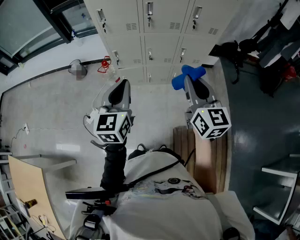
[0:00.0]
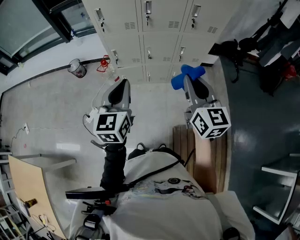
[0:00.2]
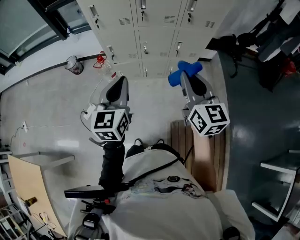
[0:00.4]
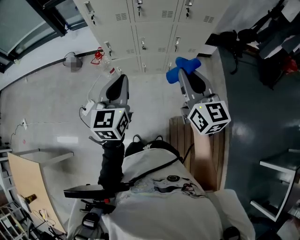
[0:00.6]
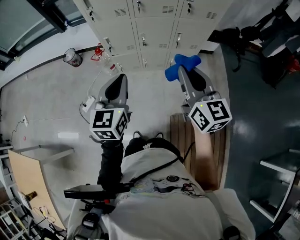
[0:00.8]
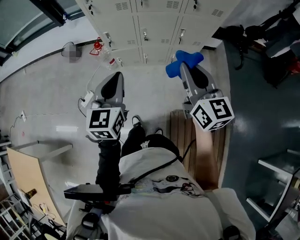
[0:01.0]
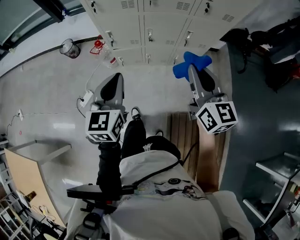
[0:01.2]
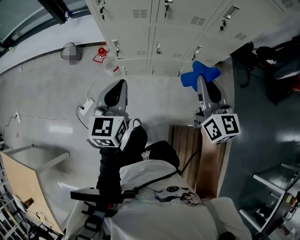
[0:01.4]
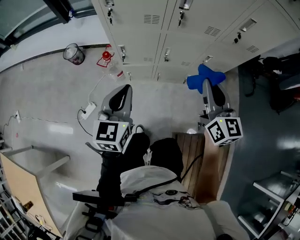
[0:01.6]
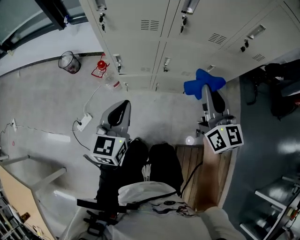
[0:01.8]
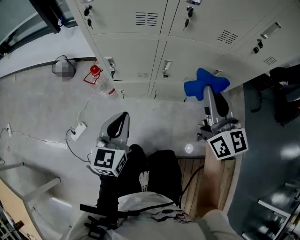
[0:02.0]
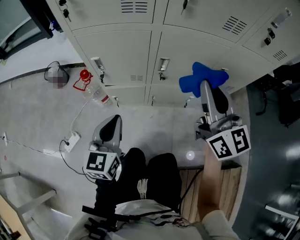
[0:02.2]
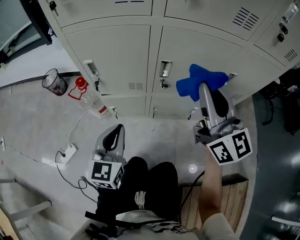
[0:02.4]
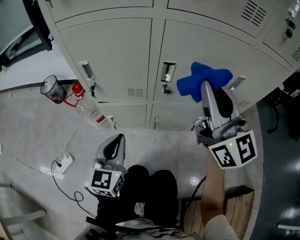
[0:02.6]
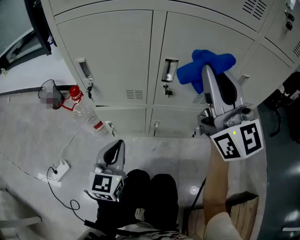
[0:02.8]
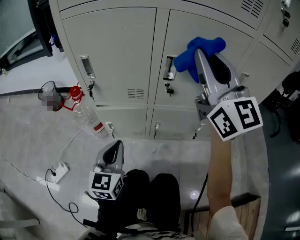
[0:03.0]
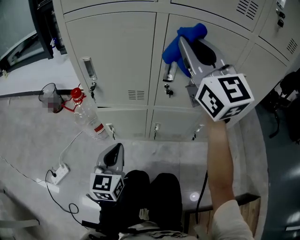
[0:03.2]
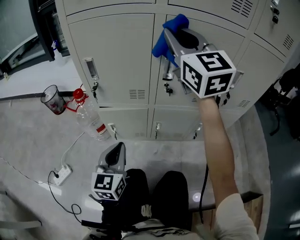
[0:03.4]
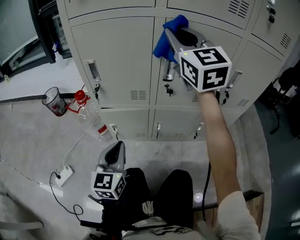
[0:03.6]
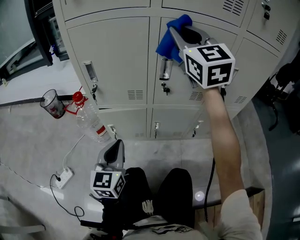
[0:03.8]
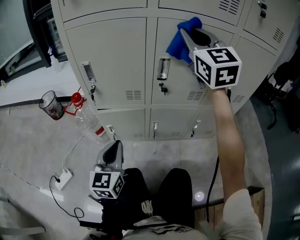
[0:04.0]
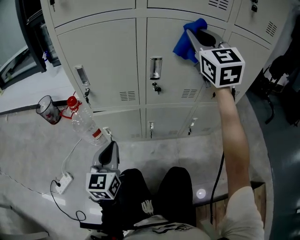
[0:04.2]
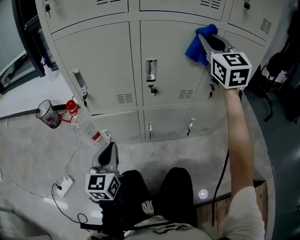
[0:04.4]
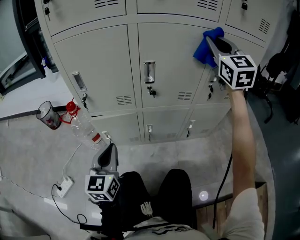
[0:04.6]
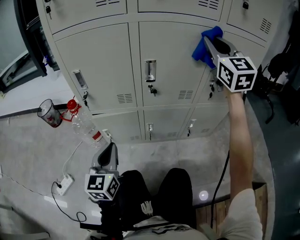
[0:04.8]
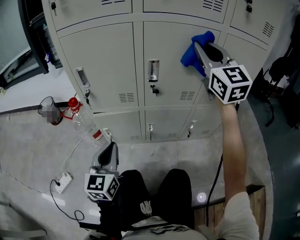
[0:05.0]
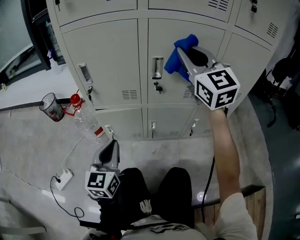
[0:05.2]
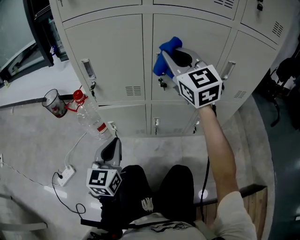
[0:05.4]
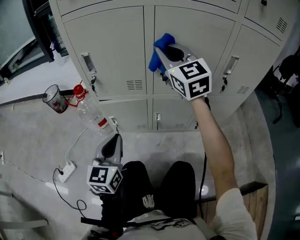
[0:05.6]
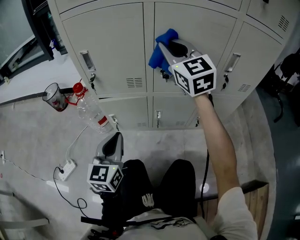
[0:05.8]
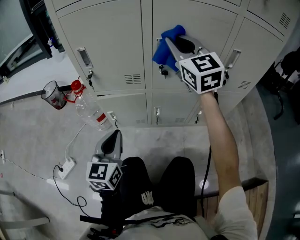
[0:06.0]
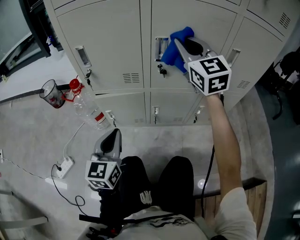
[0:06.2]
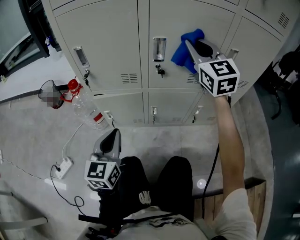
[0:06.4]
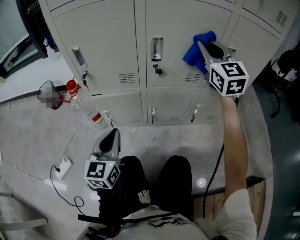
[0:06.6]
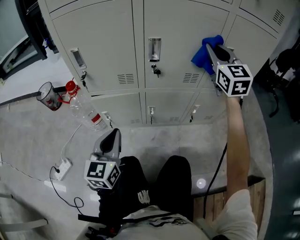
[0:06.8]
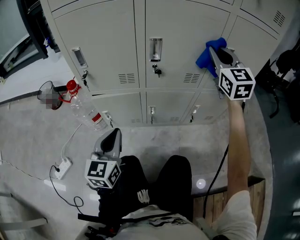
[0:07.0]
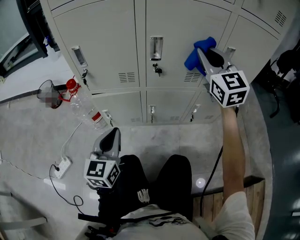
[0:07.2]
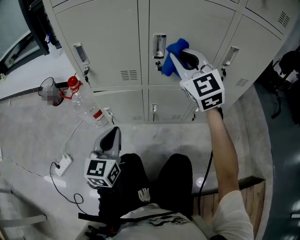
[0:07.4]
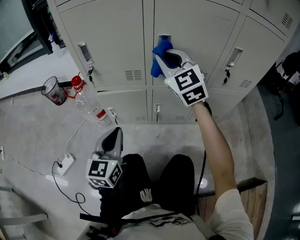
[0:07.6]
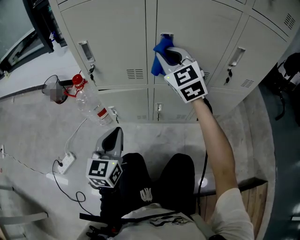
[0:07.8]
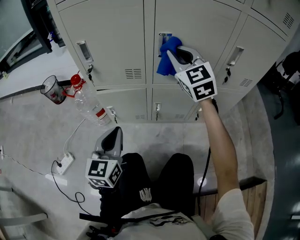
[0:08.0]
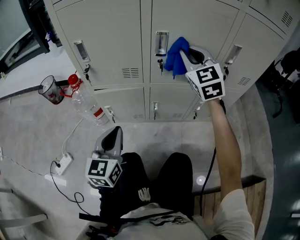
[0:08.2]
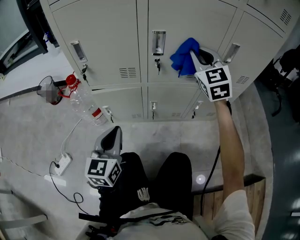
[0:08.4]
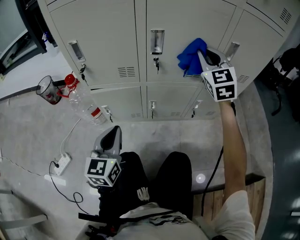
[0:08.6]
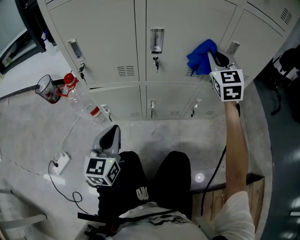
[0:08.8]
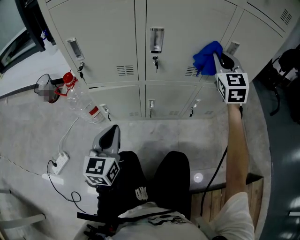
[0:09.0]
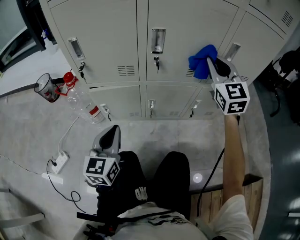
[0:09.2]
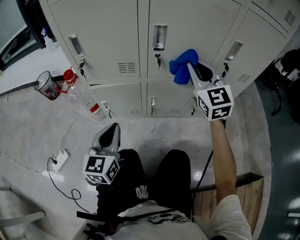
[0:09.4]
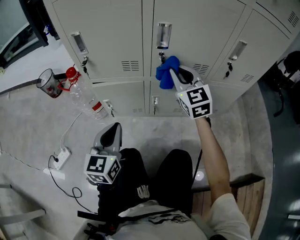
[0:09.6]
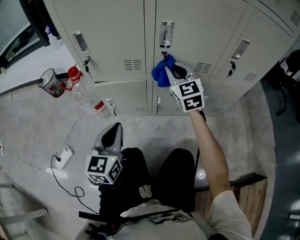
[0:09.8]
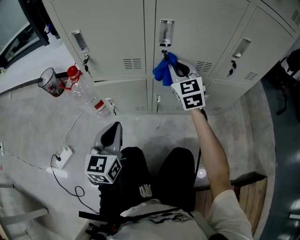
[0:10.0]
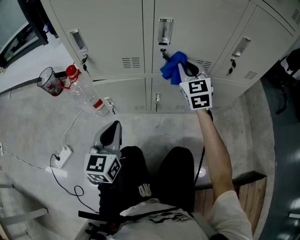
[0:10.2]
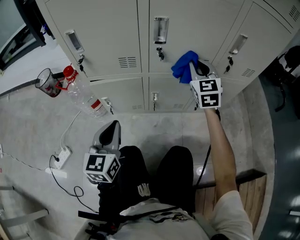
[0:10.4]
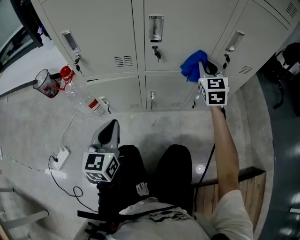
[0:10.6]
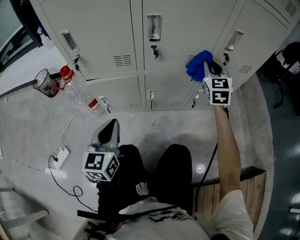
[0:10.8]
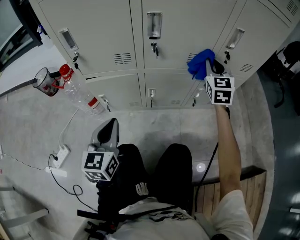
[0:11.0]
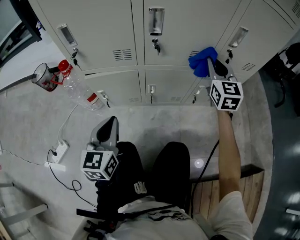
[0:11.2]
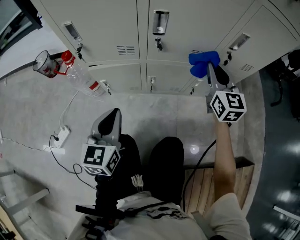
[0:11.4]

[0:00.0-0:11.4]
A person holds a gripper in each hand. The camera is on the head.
0:00.0 to 0:01.4: Both grippers travel together forward and downward, approximately 20 cm.
0:01.4 to 0:02.8: The right gripper heads downward and forward, covering some 35 cm, and turns by some 30 degrees, while the left gripper is displaced downward by about 50 cm.
0:02.8 to 0:04.2: The right gripper moves forward, about 10 cm, and turns by roughly 30 degrees.
0:04.2 to 0:05.6: The right gripper goes some 15 cm to the left and downward.
0:05.6 to 0:07.2: The right gripper moves to the right, approximately 15 cm.
0:07.2 to 0:08.6: The right gripper shifts roughly 5 cm downward, and reaches some 15 cm to the left, then returns.
0:08.6 to 0:10.0: The right gripper goes roughly 15 cm to the left and downward.
0:10.0 to 0:11.4: The right gripper moves to the right and backward, approximately 15 cm. Meanwhile the left gripper ends up some 5 cm from where it was.

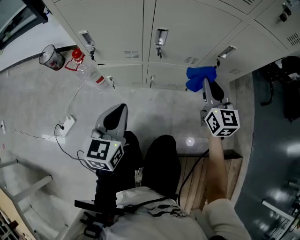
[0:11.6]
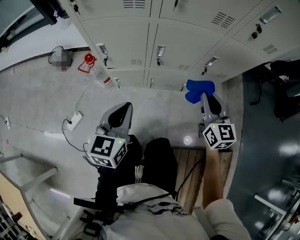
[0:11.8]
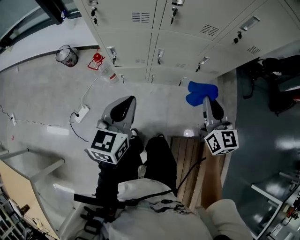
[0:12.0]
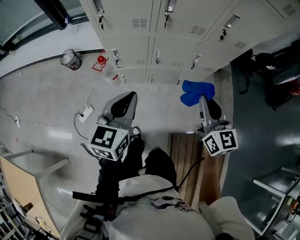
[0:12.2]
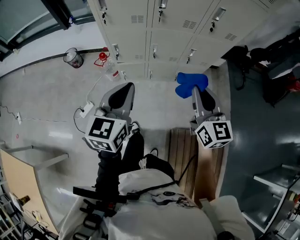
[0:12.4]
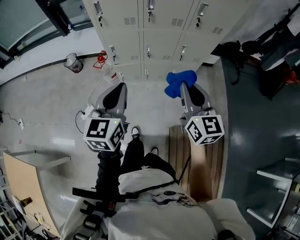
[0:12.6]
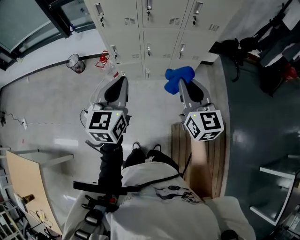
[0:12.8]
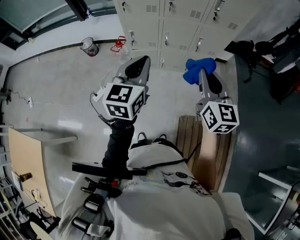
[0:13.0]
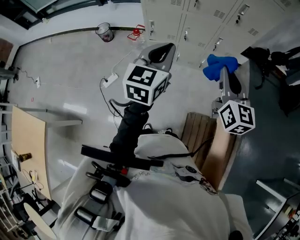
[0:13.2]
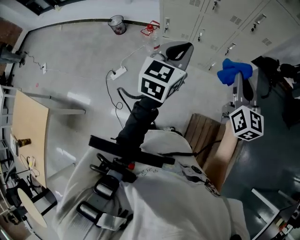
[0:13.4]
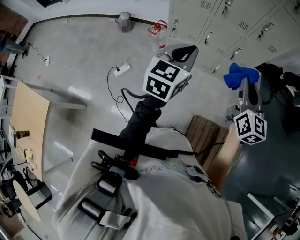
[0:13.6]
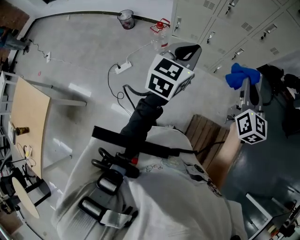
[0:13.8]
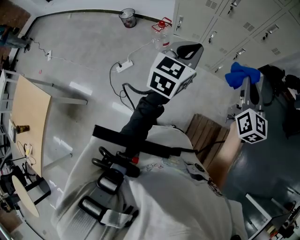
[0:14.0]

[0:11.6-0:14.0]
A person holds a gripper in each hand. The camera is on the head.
0:11.6 to 0:12.8: The grippers both shift upward and backward by some 60 cm.
0:12.8 to 0:14.0: Both grippers move to the left, about 5 cm.

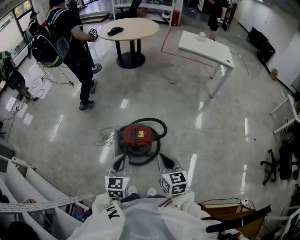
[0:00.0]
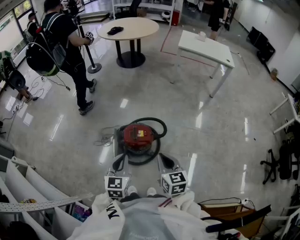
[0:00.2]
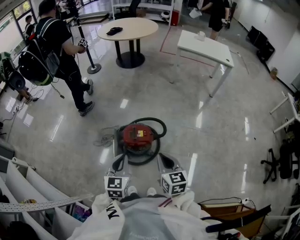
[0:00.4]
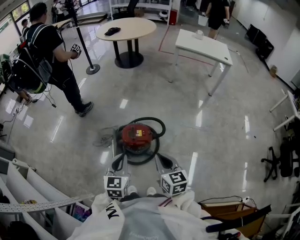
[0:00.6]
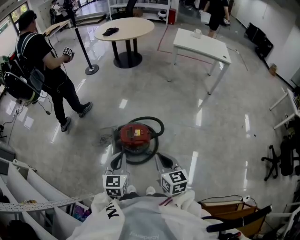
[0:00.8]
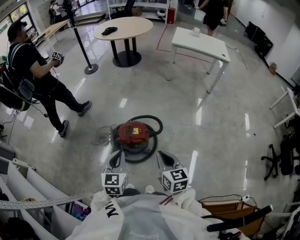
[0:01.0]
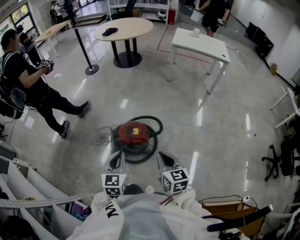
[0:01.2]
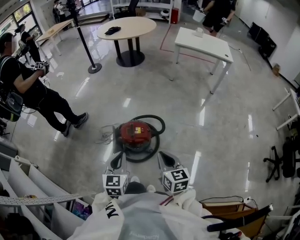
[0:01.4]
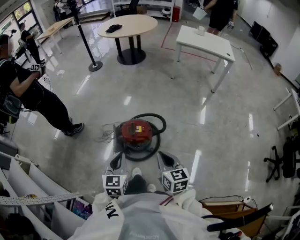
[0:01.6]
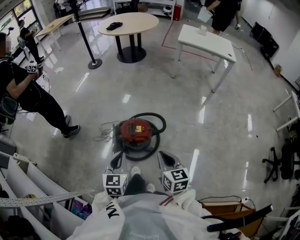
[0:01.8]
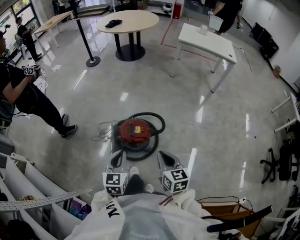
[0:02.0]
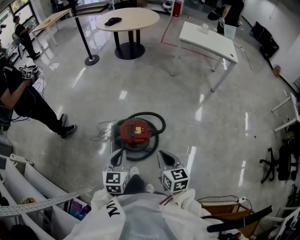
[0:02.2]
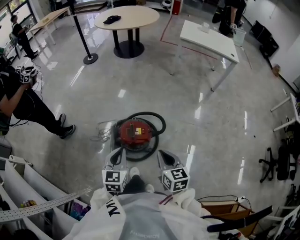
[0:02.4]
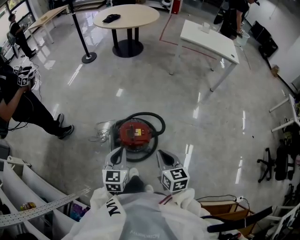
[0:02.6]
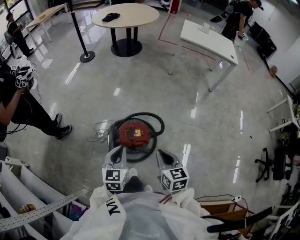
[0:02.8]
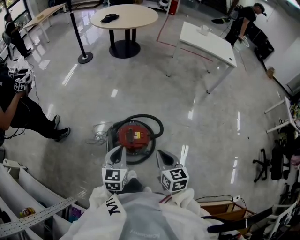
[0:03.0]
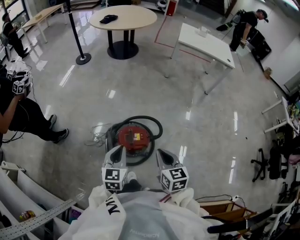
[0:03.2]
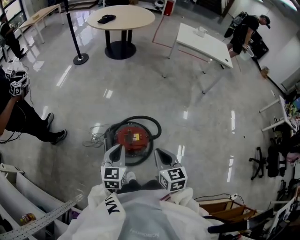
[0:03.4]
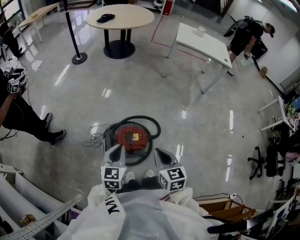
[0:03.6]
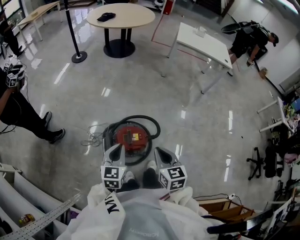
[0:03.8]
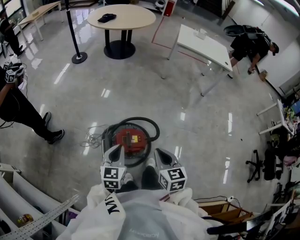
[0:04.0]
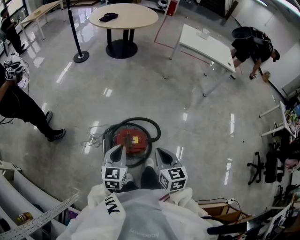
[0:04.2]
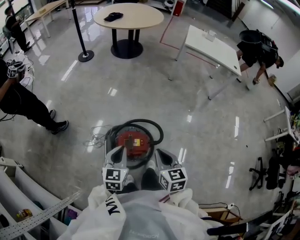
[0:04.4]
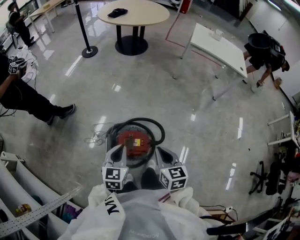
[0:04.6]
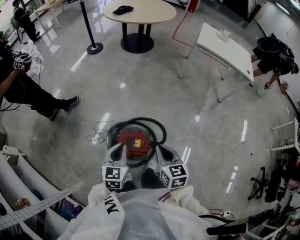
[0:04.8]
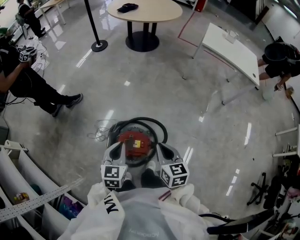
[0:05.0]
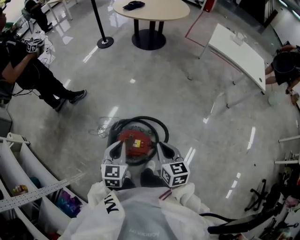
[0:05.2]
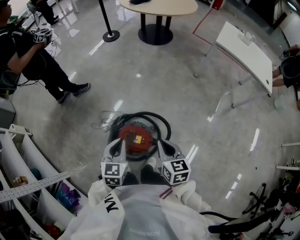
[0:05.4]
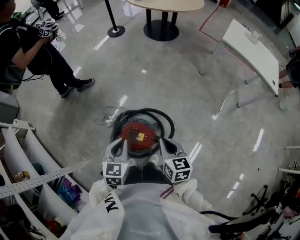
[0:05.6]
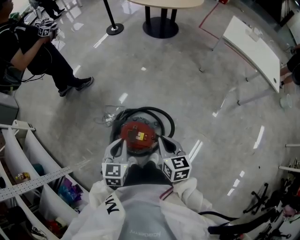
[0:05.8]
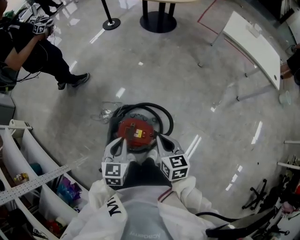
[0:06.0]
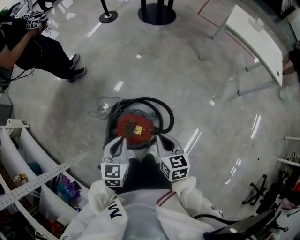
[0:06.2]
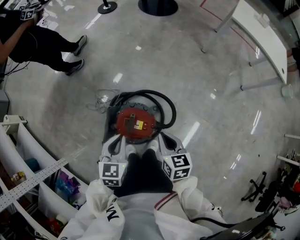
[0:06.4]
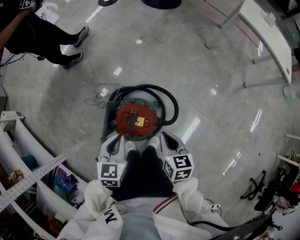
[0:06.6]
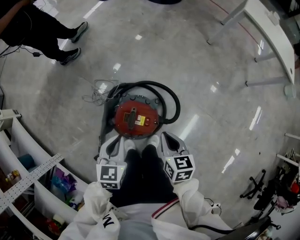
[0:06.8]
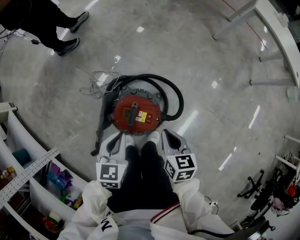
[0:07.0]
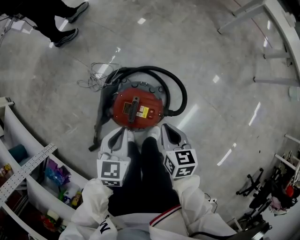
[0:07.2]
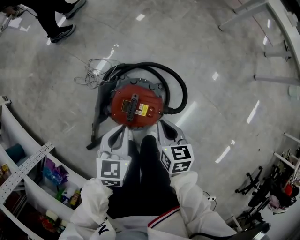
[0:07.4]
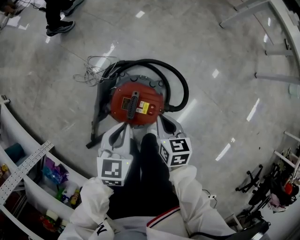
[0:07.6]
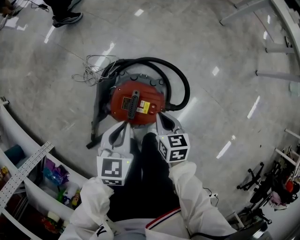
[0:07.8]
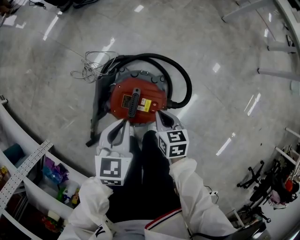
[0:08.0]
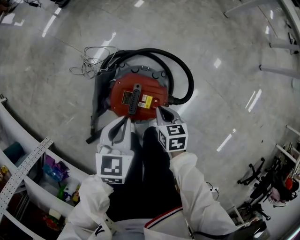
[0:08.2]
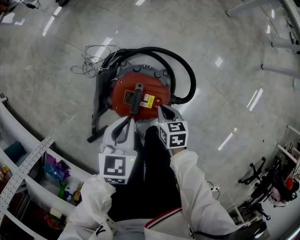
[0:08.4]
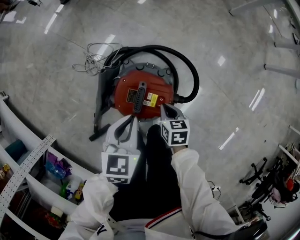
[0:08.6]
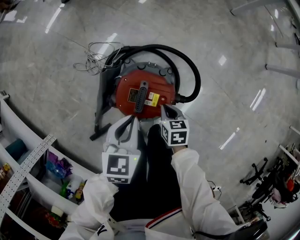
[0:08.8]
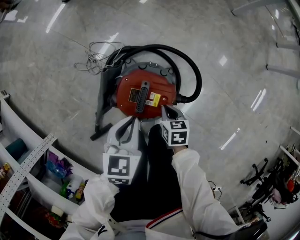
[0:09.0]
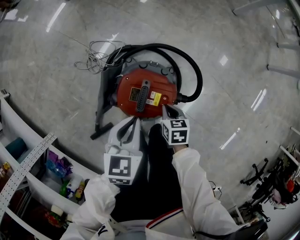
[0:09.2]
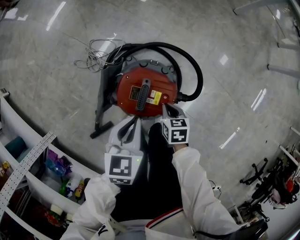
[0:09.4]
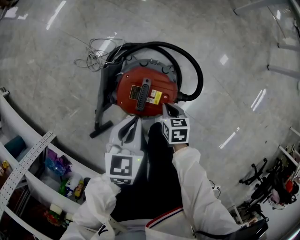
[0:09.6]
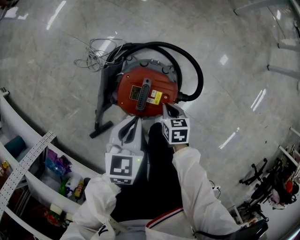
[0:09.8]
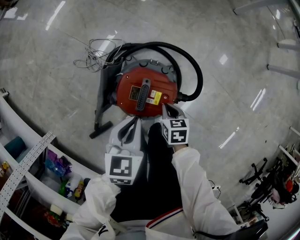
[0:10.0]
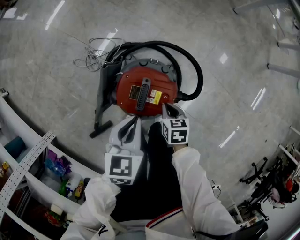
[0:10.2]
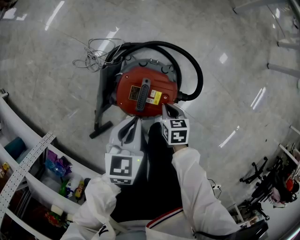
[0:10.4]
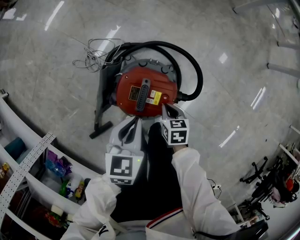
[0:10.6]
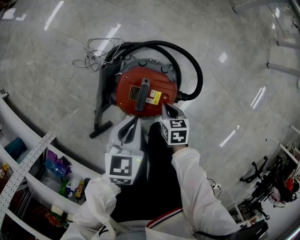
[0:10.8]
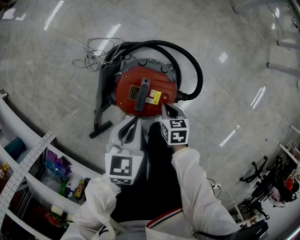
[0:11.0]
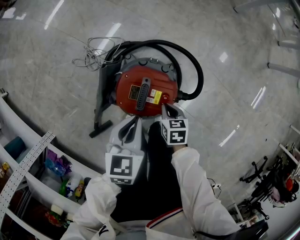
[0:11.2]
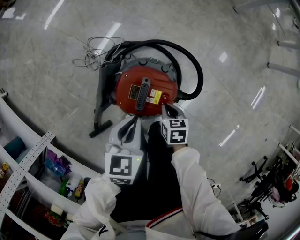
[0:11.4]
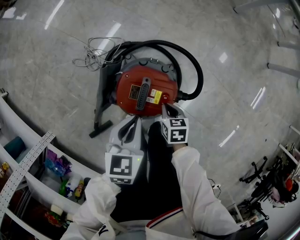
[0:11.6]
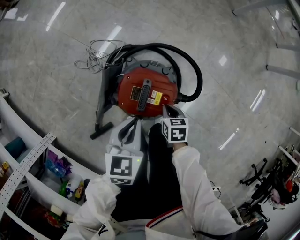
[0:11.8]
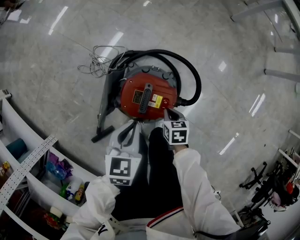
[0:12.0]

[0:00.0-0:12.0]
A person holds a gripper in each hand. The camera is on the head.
0:00.0 to 0:01.6: The grippers stay close to where they were, moving slightly.
0:01.6 to 0:03.0: Both grippers move forward, about 10 cm.
0:03.0 to 0:04.4: Both grippers travel together forward, approximately 5 cm.
0:04.4 to 0:06.0: The left gripper moves to the right, roughly 5 cm. The right gripper heads forward, downward and to the right, covering some 15 cm.
0:06.0 to 0:07.6: The grippers both shift downward by roughly 20 cm.
0:07.6 to 0:09.0: The right gripper goes approximately 15 cm downward.
0:09.0 to 0:10.4: The two grippers keep their place.
0:10.4 to 0:12.0: The grippers move only a little.
